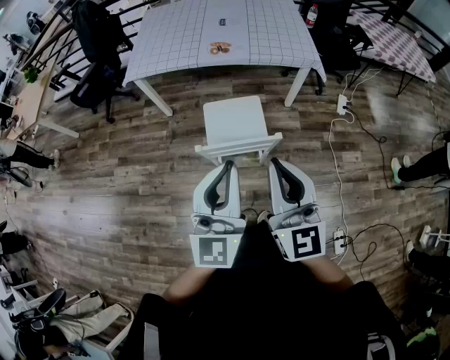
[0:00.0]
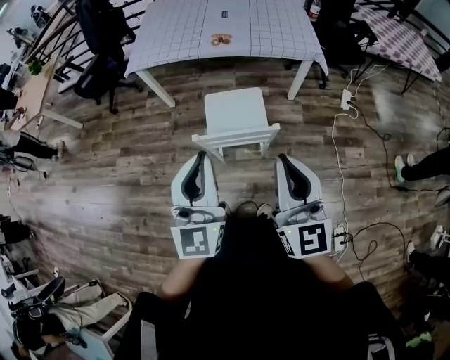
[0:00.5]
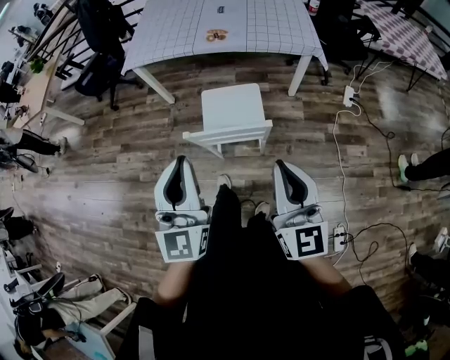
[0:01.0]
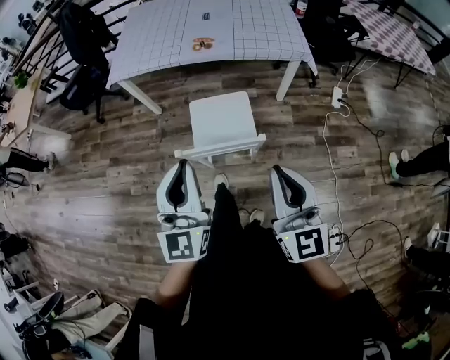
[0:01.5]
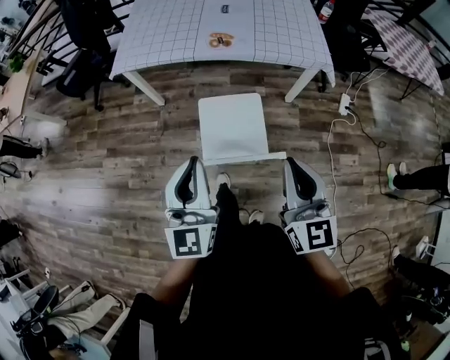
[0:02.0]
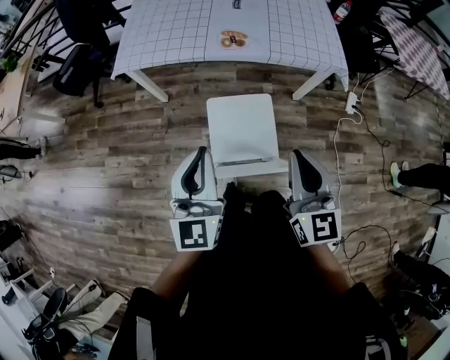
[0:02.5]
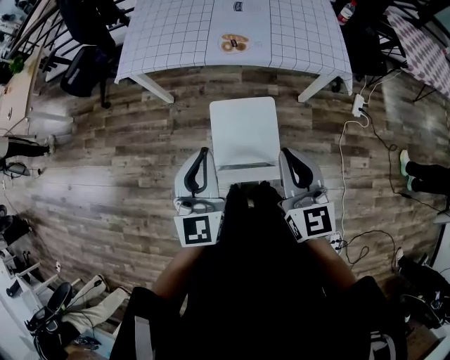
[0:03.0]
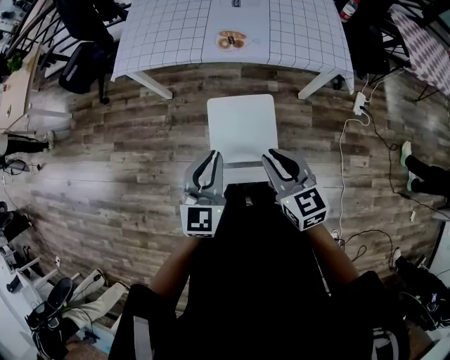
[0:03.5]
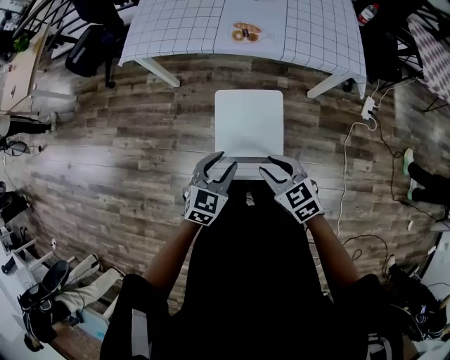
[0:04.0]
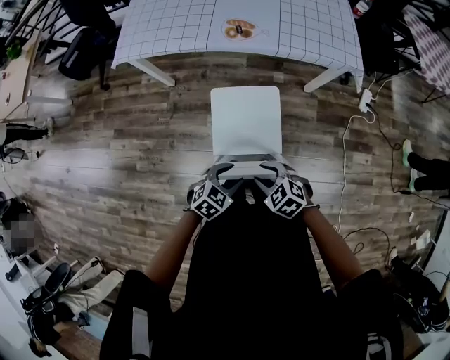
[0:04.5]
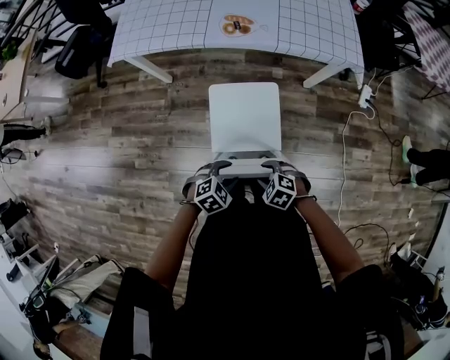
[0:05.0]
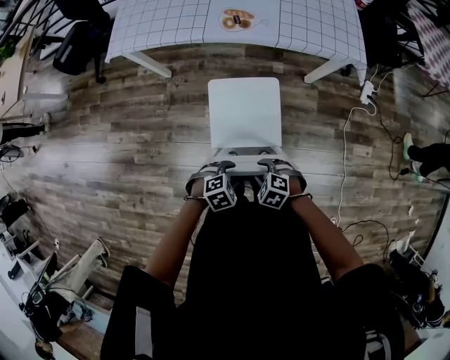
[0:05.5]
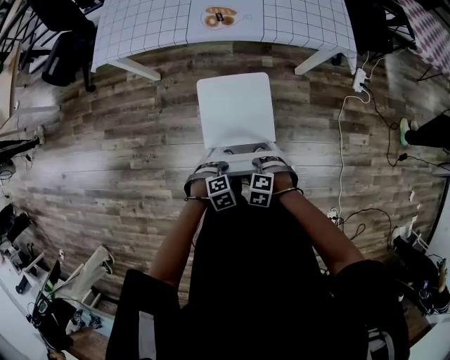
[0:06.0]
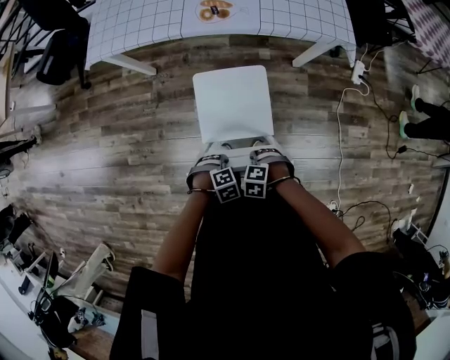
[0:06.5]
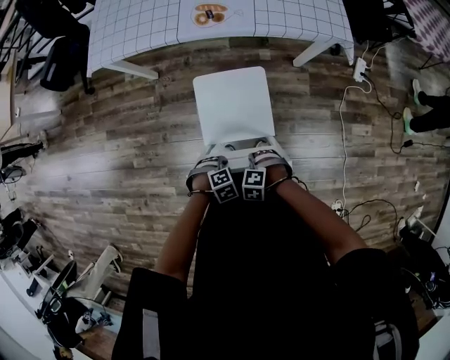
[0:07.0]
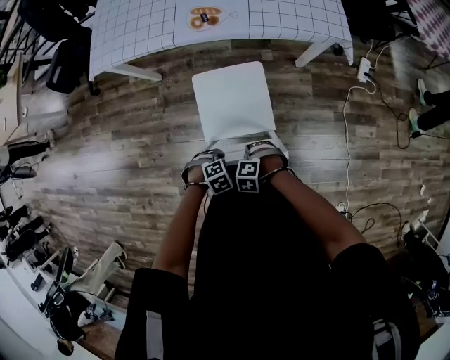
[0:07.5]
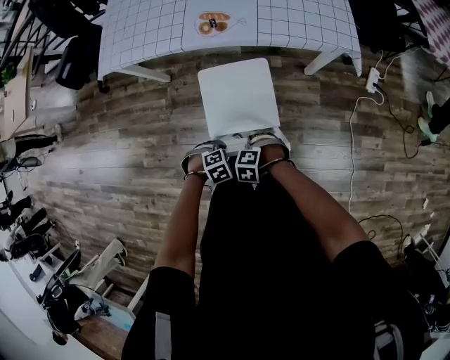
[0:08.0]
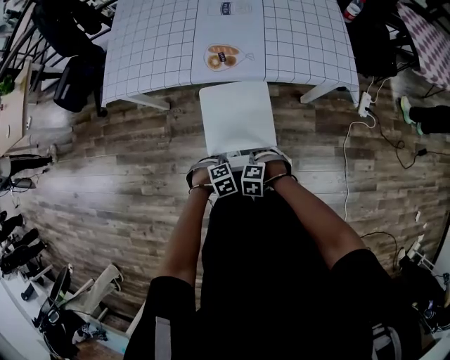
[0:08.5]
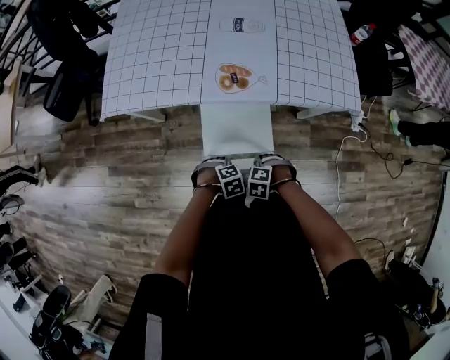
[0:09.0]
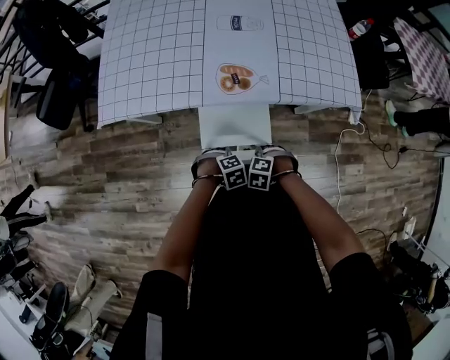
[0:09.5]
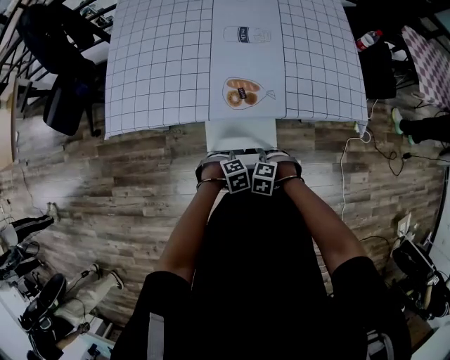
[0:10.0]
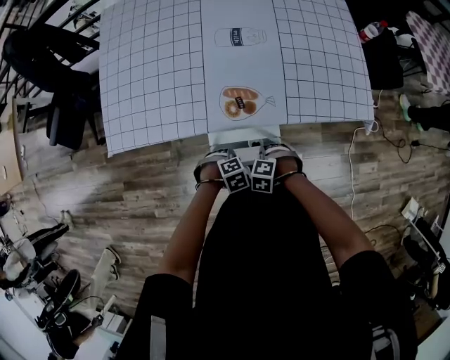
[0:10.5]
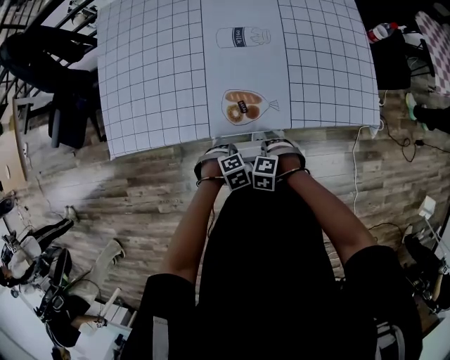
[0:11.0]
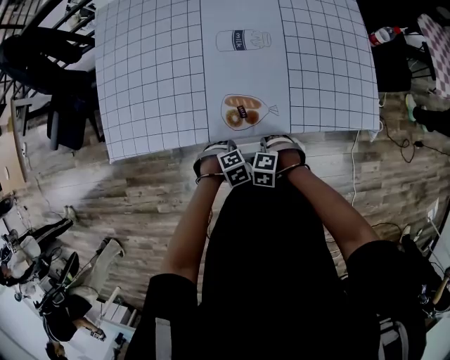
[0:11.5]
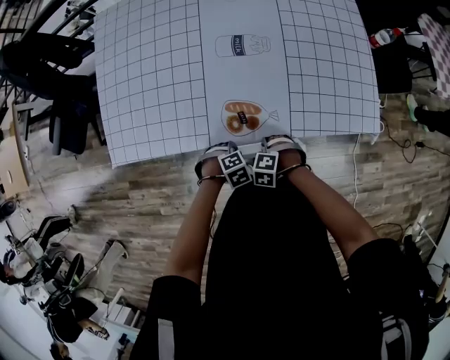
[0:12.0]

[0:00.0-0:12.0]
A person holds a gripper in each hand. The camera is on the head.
0:00.0 to 0:02.0: Both grippers travel together forward and downward, some 15 cm.
0:02.0 to 0:04.0: The two grippers go some 25 cm downward and forward. The left gripper tilts its fingers some 40 degrees downward, and opens. Meanwhile the right gripper angles its fingers downward, by approximately 30 degrees, and opens its fingers.
0:04.0 to 0:06.0: The grippers both shift downward by about 20 cm. The right gripper tips its fingers downward by some 40 degrees. The left gripper tips its fingers downward by some 40 degrees.
0:06.0 to 0:08.0: The left gripper moves about 10 cm, and closes. Meanwhile the right gripper changes place by some 10 cm.
0:08.0 to 0:10.0: The right gripper shifts by about 25 cm. Meanwhile the left gripper shifts by about 25 cm.
0:10.0 to 0:12.0: The left gripper ends up some 15 cm from where it was, while the right gripper shifts by about 15 cm.

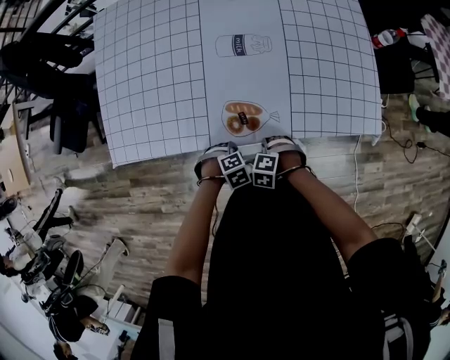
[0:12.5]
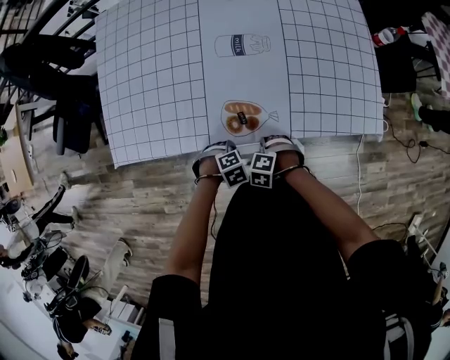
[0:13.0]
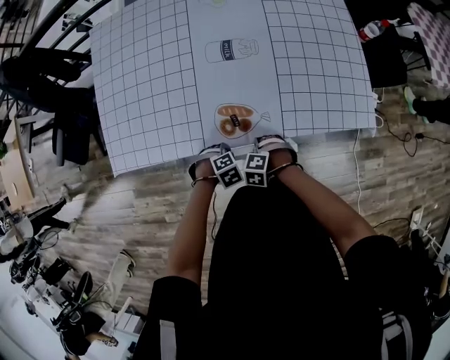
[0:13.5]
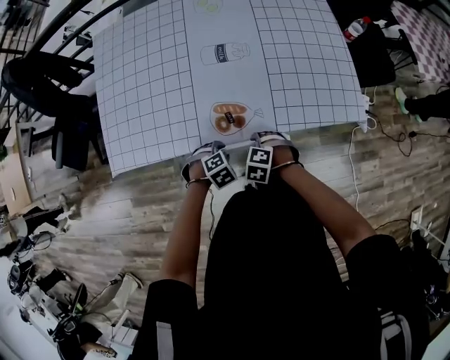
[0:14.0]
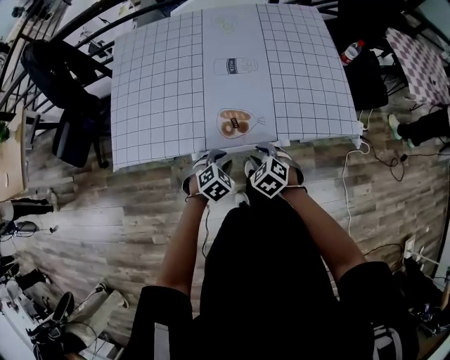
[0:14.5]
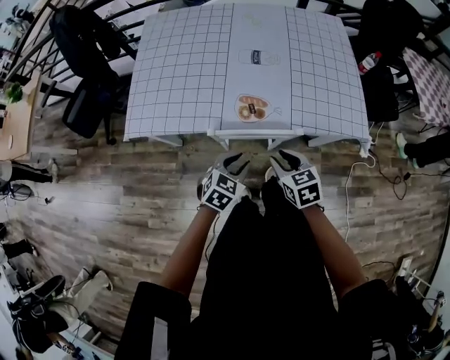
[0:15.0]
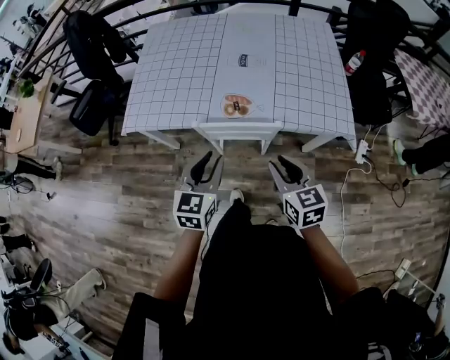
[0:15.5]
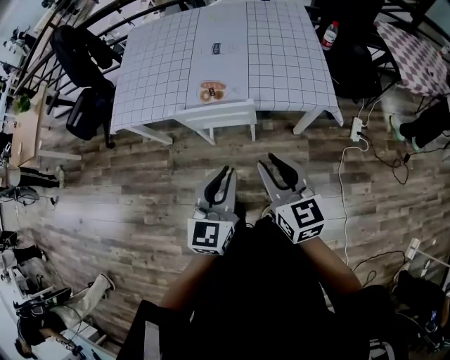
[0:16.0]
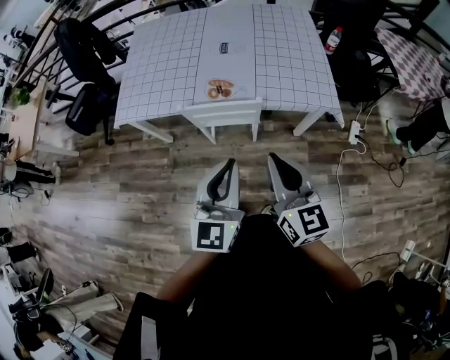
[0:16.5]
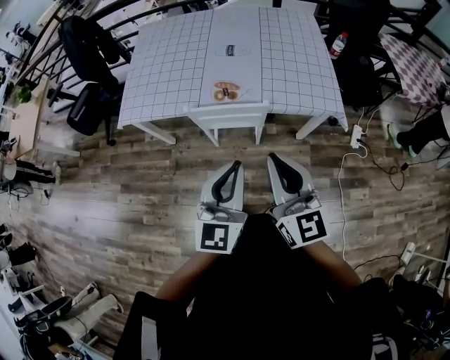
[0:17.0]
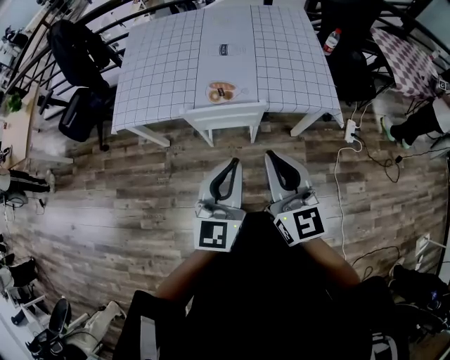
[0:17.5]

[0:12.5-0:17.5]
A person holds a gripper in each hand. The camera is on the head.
0:12.5 to 0:15.0: The grippers both shift upward by roughly 20 cm. The left gripper tips its fingers upward by approximately 40 degrees. Meanwhile the right gripper tilts its fingers roughly 40 degrees upward.
0:15.0 to 0:17.5: The two grippers go roughly 30 cm upward and backward. The left gripper tilts its fingers about 40 degrees upward, and closes its fingers; the right gripper tips its fingers upward by approximately 40 degrees, and closes up.

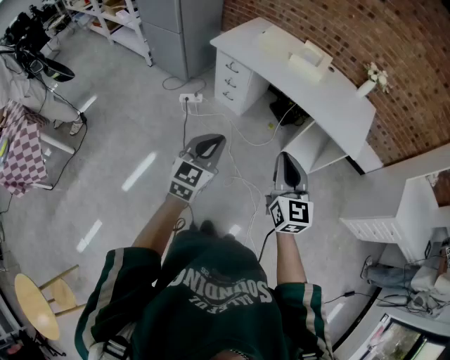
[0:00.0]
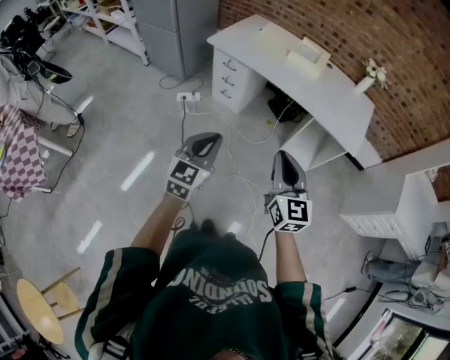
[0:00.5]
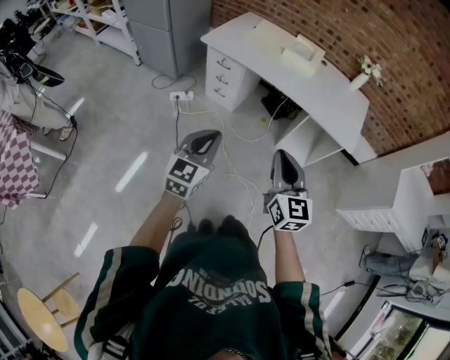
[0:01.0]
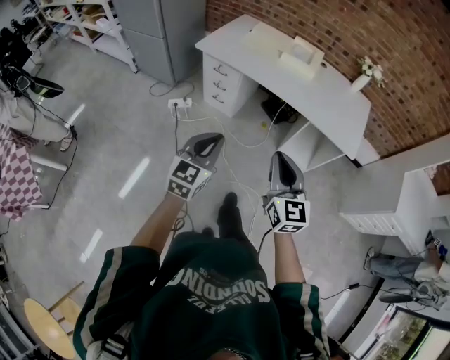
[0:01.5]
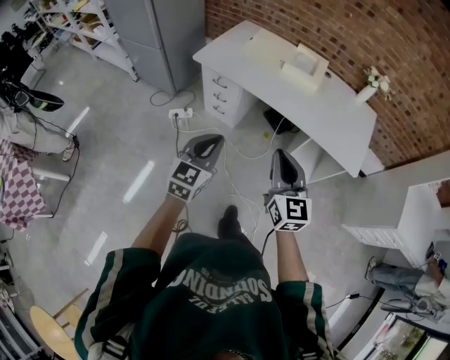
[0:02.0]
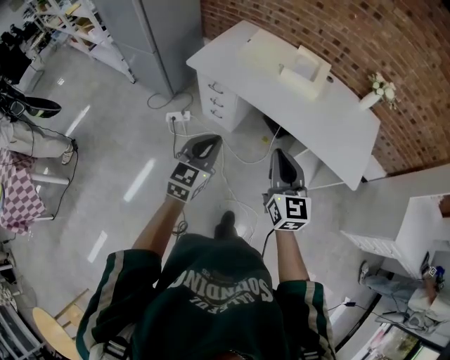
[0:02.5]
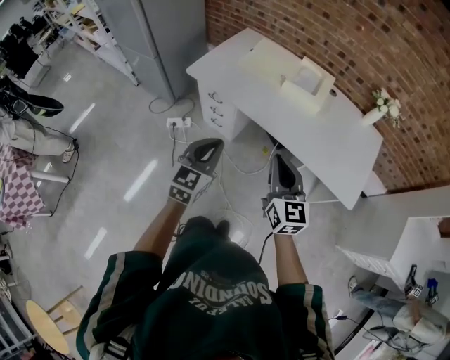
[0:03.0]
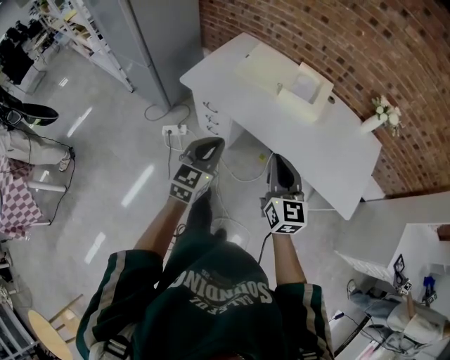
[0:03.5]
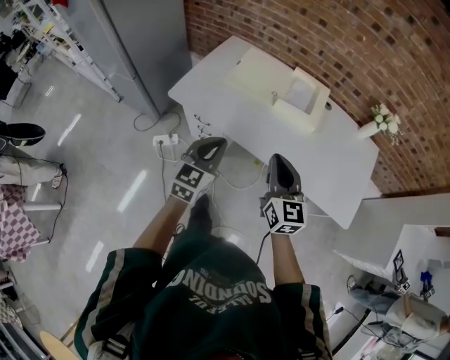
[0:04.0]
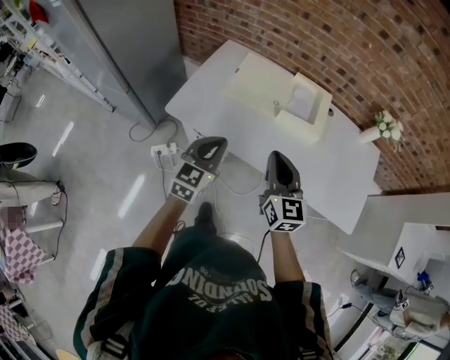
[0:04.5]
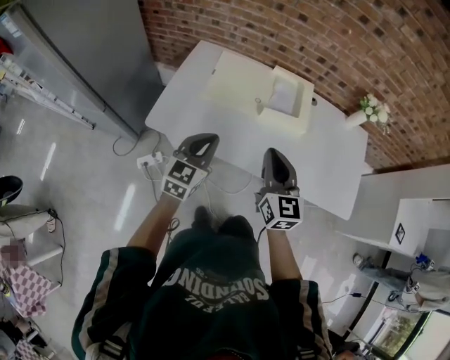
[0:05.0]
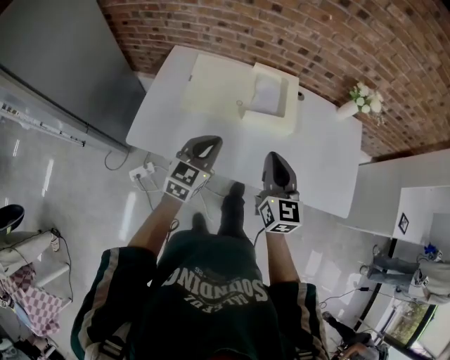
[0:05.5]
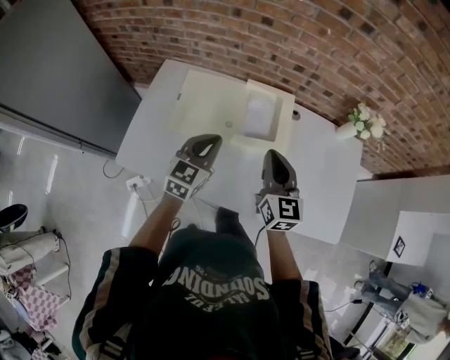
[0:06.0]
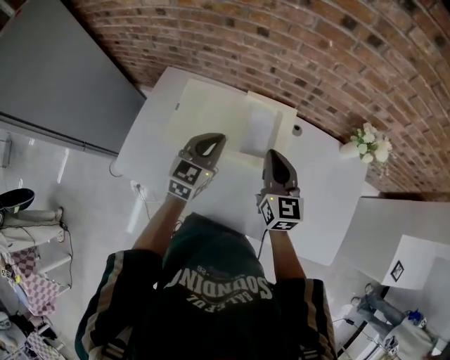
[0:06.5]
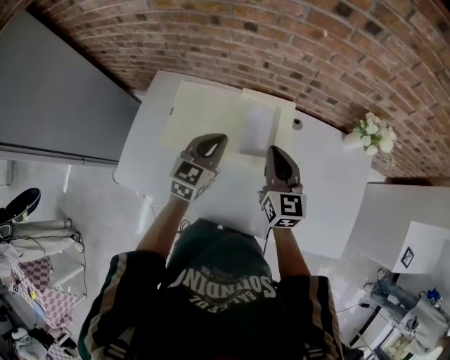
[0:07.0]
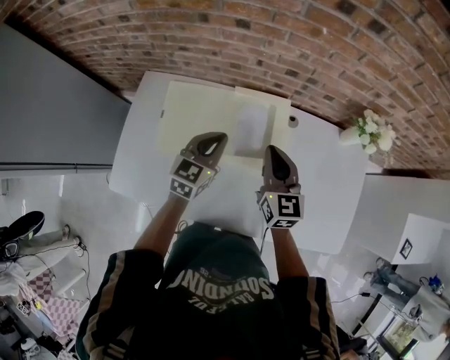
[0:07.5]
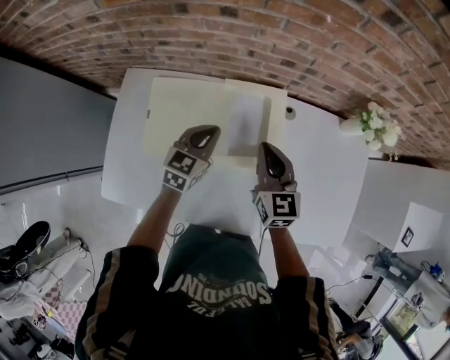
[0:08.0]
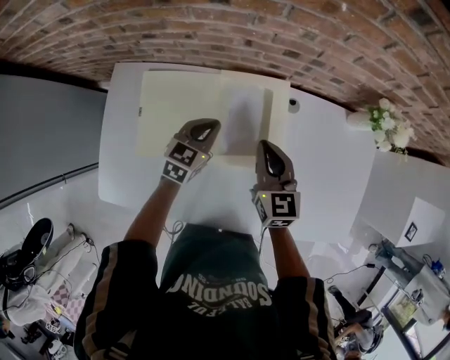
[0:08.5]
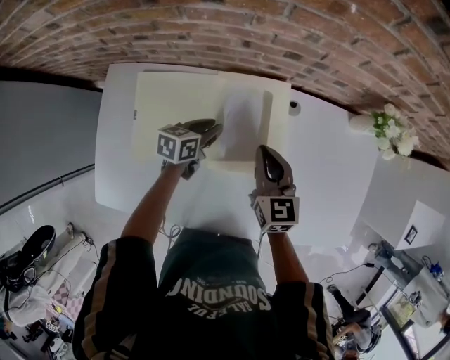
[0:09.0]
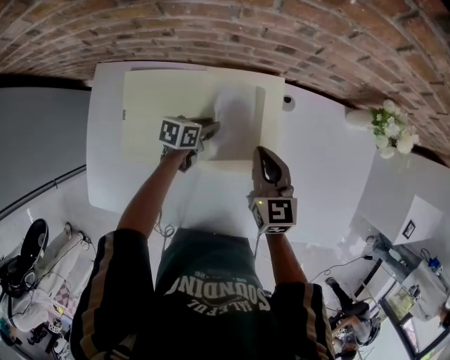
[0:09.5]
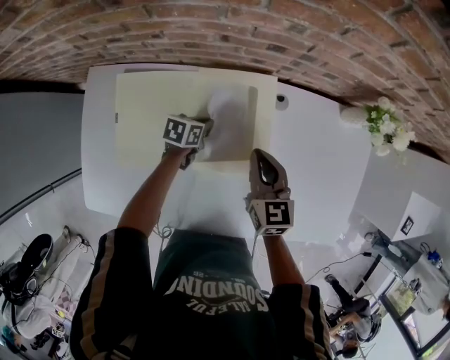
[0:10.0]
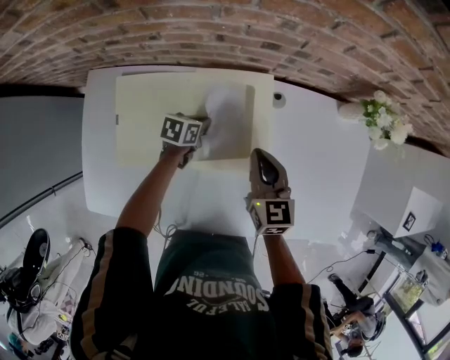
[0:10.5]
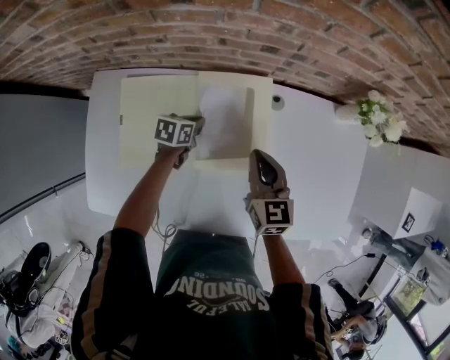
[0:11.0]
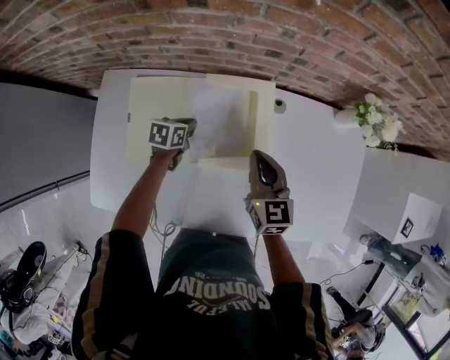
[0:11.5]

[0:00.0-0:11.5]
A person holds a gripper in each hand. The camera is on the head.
0:00.0 to 0:02.0: The two grippers go about 20 cm forward.
0:02.0 to 0:04.0: The two grippers go approximately 35 cm forward.
0:04.0 to 0:06.0: Both grippers move forward, about 30 cm.
0:06.0 to 0:07.5: Both grippers travel together forward, roughly 15 cm.
0:07.5 to 0:09.5: The left gripper moves downward, approximately 25 cm, swivels roughly 50 degrees, and opens up. Meanwhile the right gripper shifts roughly 15 cm downward and forward.
0:09.5 to 0:11.5: The left gripper shifts about 5 cm to the left, and closes.
